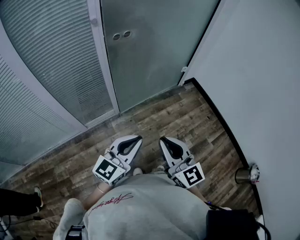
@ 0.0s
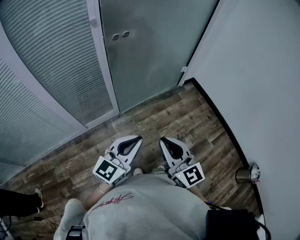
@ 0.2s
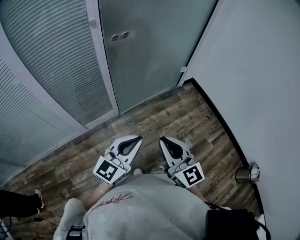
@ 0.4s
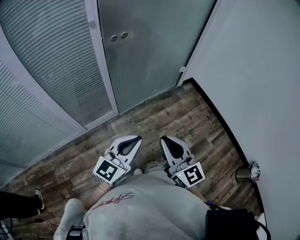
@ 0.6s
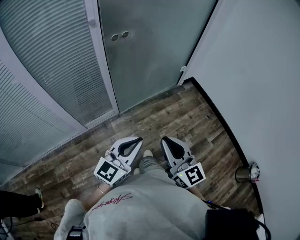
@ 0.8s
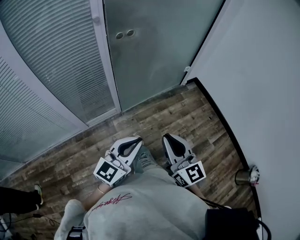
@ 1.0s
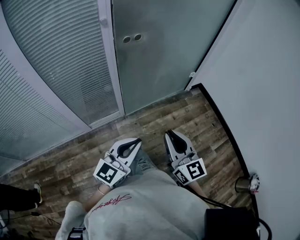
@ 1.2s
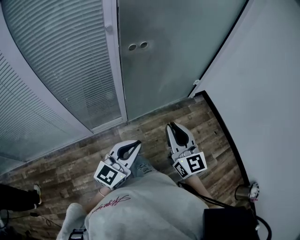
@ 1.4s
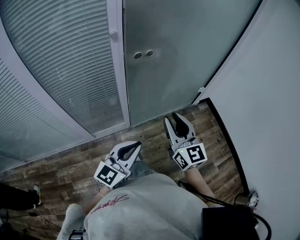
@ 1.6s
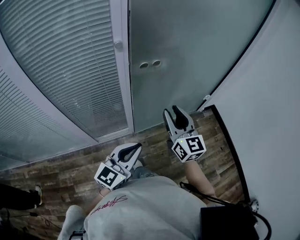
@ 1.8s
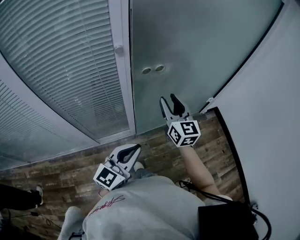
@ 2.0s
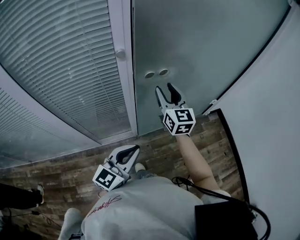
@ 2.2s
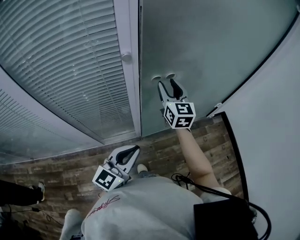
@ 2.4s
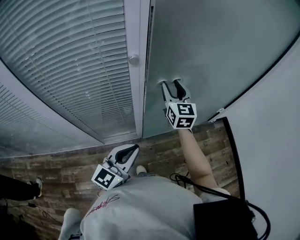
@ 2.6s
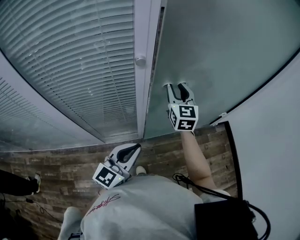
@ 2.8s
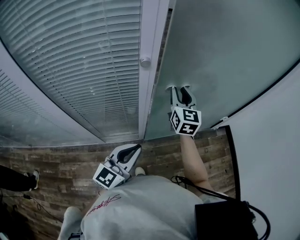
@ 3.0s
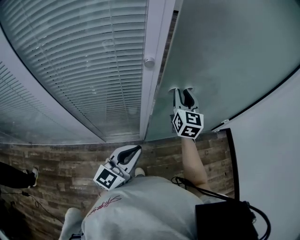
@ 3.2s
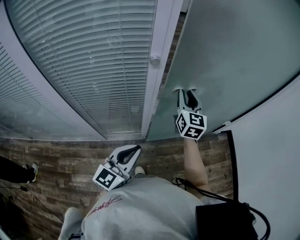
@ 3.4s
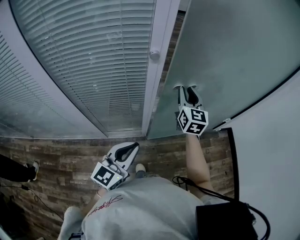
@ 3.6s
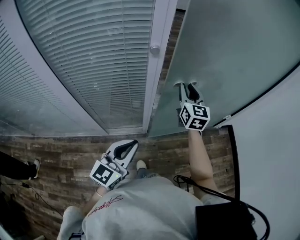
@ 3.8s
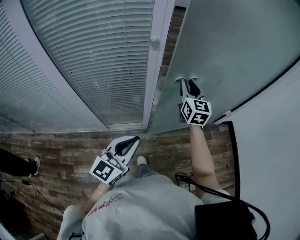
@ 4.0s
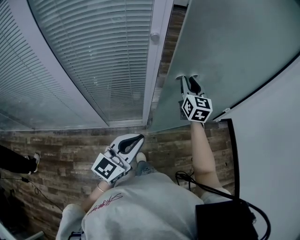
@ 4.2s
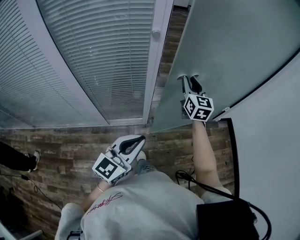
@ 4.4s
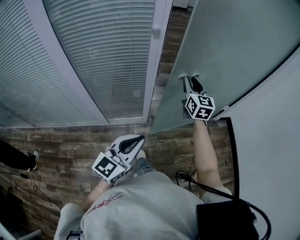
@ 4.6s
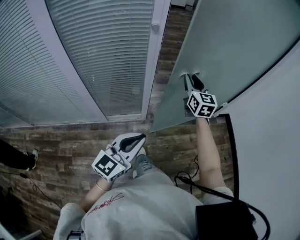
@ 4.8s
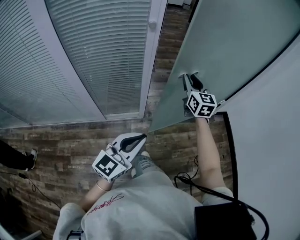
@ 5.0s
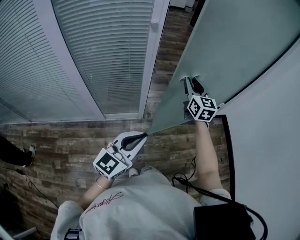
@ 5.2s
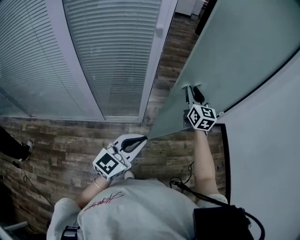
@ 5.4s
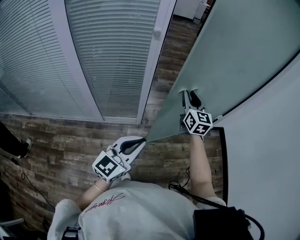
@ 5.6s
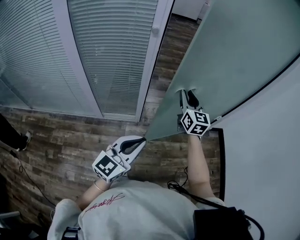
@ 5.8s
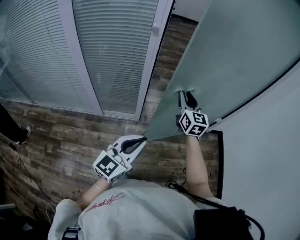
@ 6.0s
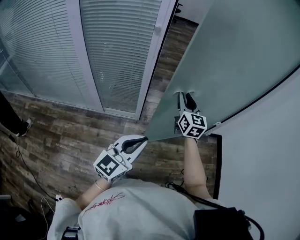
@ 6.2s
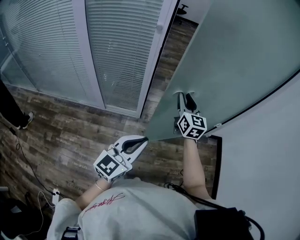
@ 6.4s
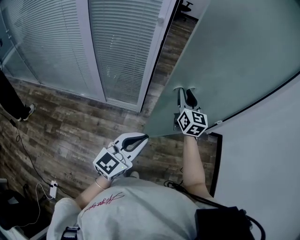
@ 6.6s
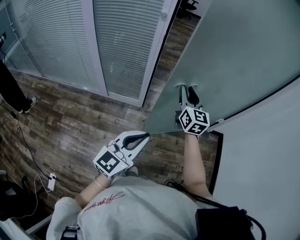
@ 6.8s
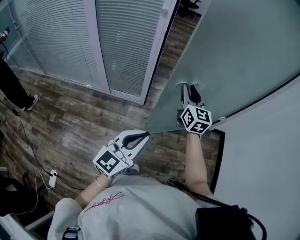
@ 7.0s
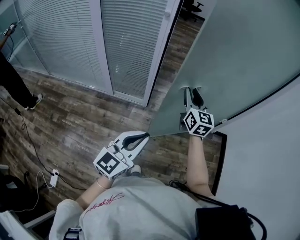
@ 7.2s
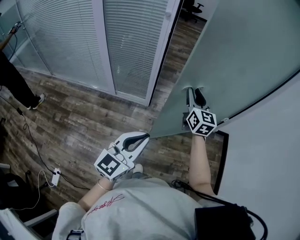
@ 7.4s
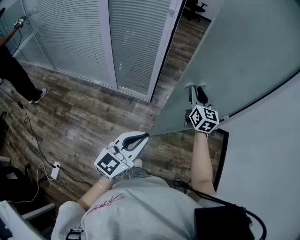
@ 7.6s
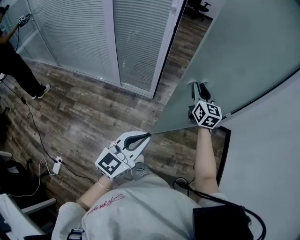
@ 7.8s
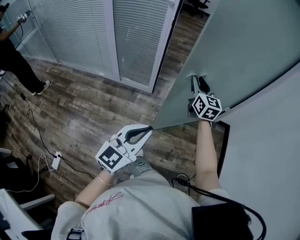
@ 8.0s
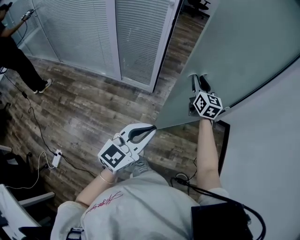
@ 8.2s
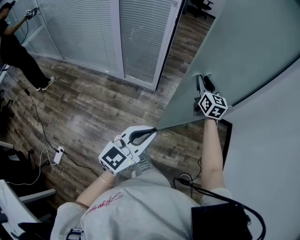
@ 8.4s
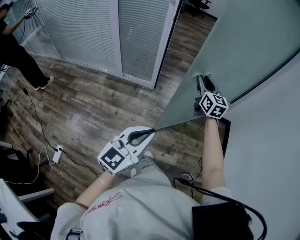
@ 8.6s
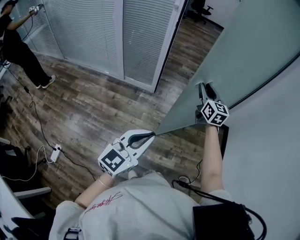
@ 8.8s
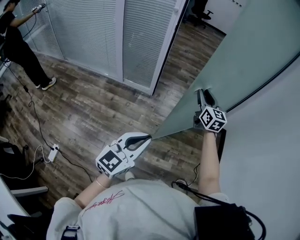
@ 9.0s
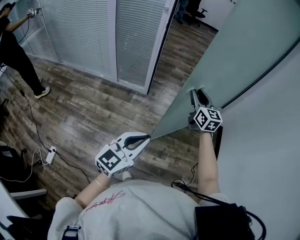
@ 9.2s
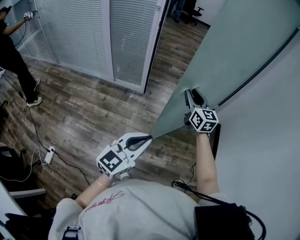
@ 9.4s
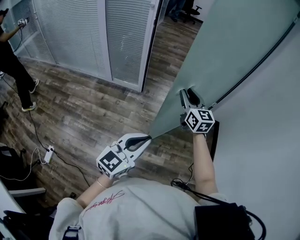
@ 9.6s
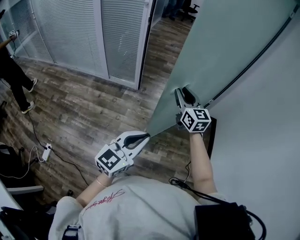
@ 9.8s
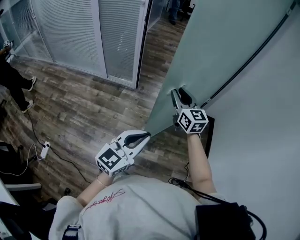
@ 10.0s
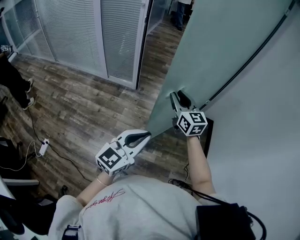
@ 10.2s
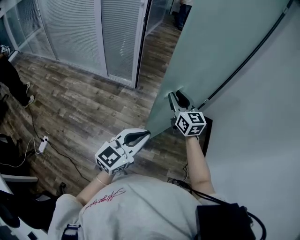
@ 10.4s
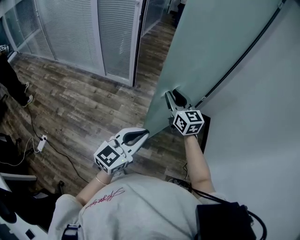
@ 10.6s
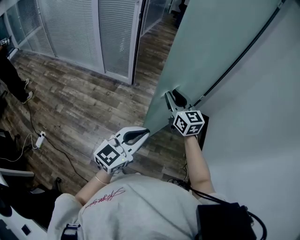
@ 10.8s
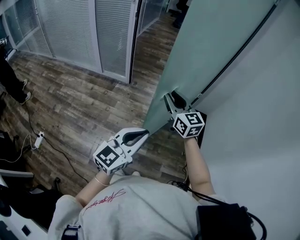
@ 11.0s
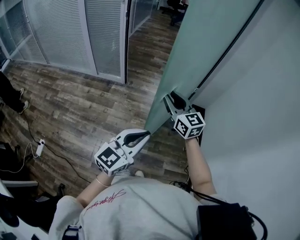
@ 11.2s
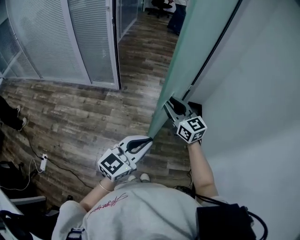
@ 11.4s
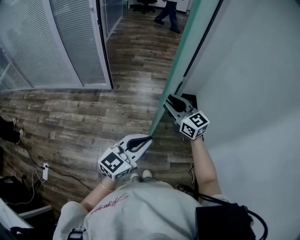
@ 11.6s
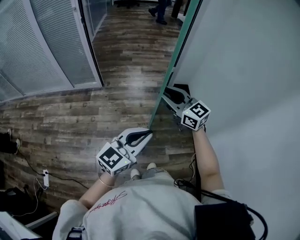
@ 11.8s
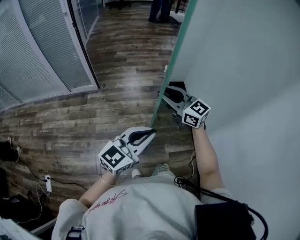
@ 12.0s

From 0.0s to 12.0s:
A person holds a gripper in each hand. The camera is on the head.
From 0.0s to 1.6s: The left gripper is displaced forward and to the left by some 15 cm. The right gripper is displaced forward by roughly 20 cm.
From 1.6s to 3.0s: The right gripper goes about 30 cm forward, while the left gripper travels forward and to the left by about 15 cm.
From 3.0s to 4.4s: The left gripper is displaced backward by approximately 10 cm, while the right gripper travels backward by roughly 5 cm.
From 4.4s to 6.0s: The right gripper is displaced backward and to the right by approximately 15 cm; the left gripper travels to the right and backward by approximately 15 cm.
From 6.0s to 7.6s: Both grippers move backward and to the right, some 15 cm.
From 7.6s to 9.0s: Both grippers travel together backward and to the right, roughly 15 cm.
From 9.0s to 10.4s: The left gripper travels to the right by approximately 20 cm. Meanwhile the right gripper moves backward and to the right, some 15 cm.
From 10.4s to 12.0s: The right gripper heads to the right and backward, covering some 20 cm. Meanwhile the left gripper shifts about 15 cm to the right, and rotates about 30 degrees.

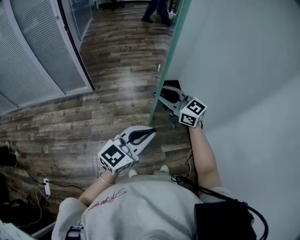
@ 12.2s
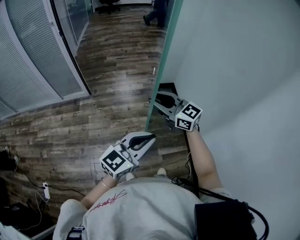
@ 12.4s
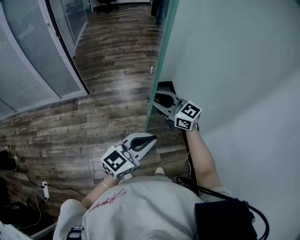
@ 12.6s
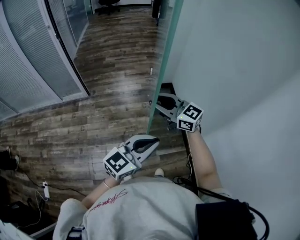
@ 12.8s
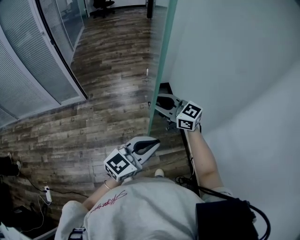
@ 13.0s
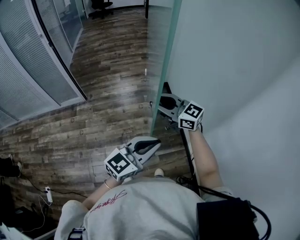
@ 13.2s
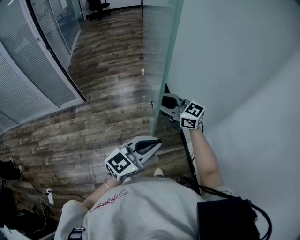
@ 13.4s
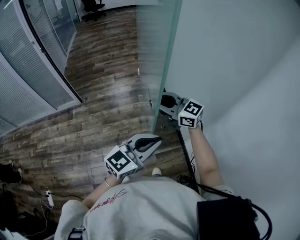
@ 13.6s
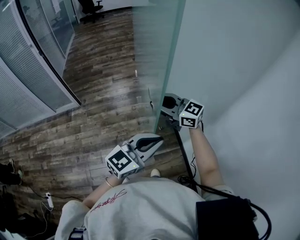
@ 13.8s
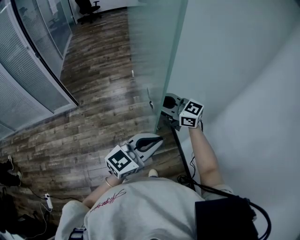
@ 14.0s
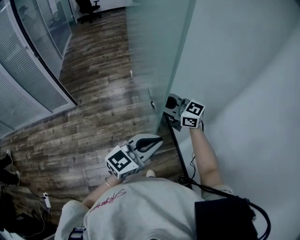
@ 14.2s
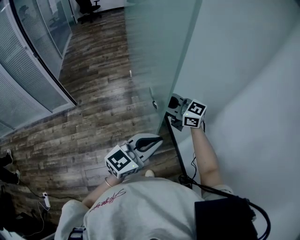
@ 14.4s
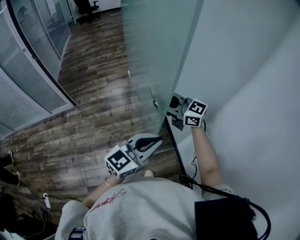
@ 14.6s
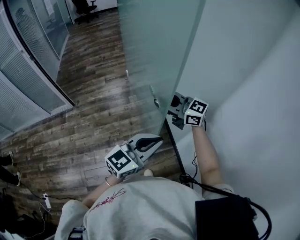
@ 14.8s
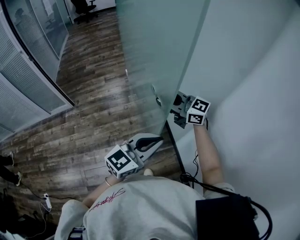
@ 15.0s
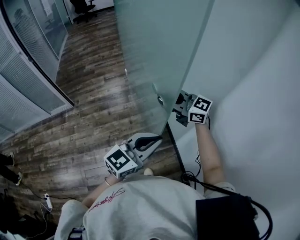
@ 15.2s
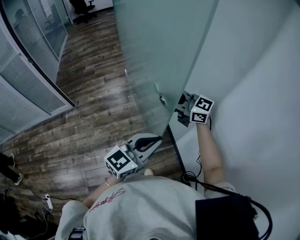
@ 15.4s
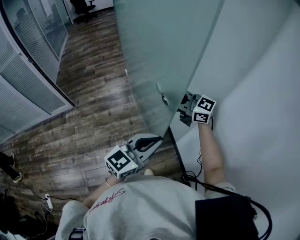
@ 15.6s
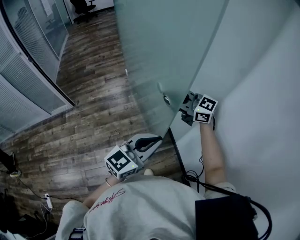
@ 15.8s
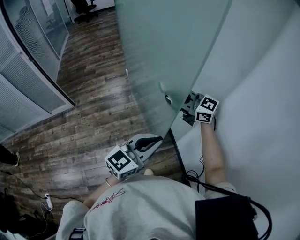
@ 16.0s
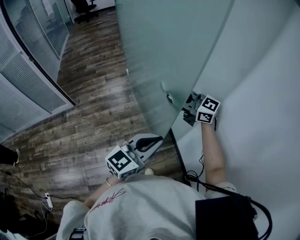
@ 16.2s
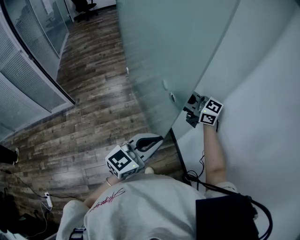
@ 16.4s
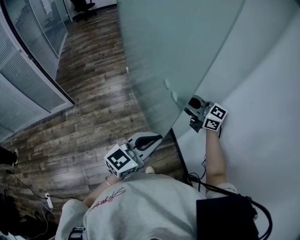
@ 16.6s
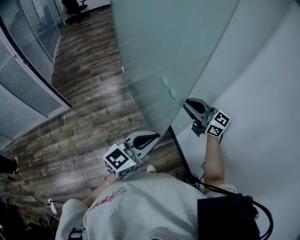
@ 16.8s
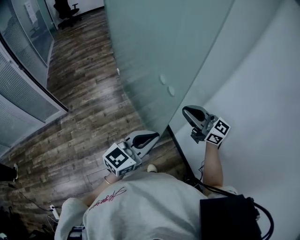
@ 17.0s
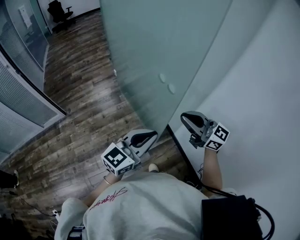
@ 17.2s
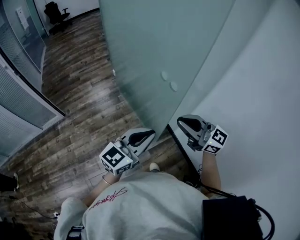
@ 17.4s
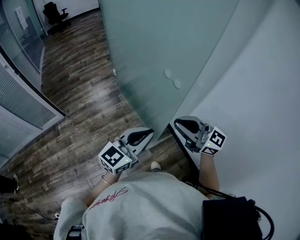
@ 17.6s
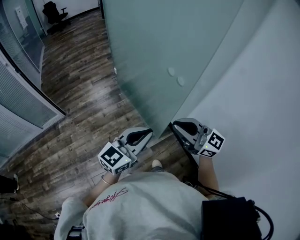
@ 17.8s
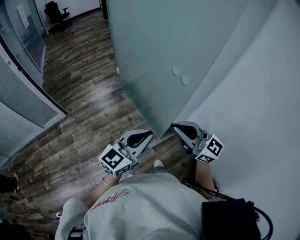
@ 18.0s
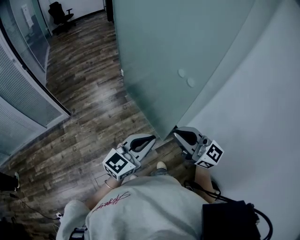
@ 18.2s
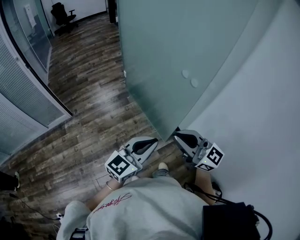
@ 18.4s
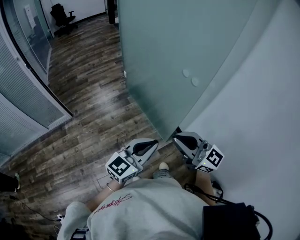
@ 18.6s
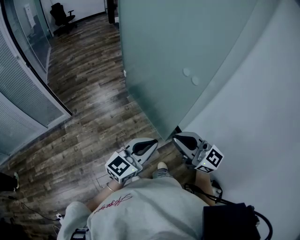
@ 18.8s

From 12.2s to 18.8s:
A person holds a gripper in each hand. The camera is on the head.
From 12.2s to 13.8s: The two grippers go some 20 cm to the right.
From 13.8s to 15.4s: The right gripper changes place by about 15 cm. The left gripper ends up roughly 10 cm from where it was.
From 15.4s to 17.2s: The right gripper goes about 15 cm backward. The left gripper shifts approximately 5 cm to the left.
From 17.2s to 18.8s: Both grippers travel together to the left and backward, some 20 cm.

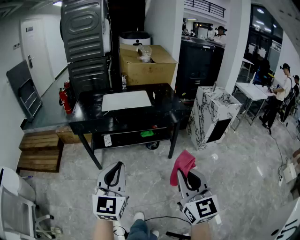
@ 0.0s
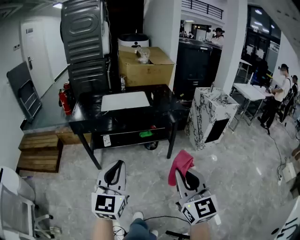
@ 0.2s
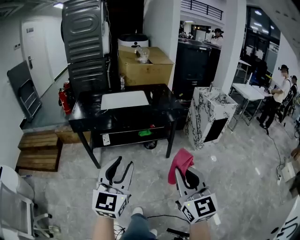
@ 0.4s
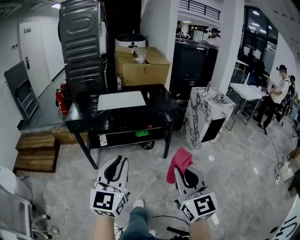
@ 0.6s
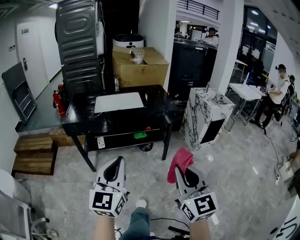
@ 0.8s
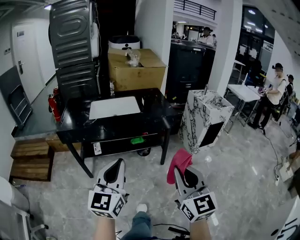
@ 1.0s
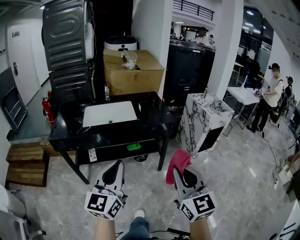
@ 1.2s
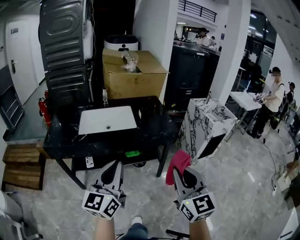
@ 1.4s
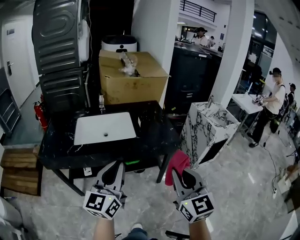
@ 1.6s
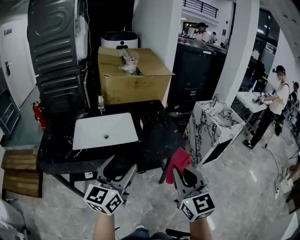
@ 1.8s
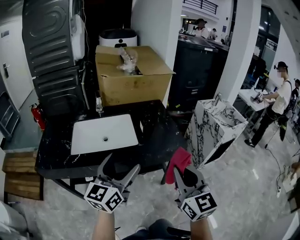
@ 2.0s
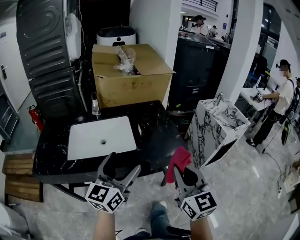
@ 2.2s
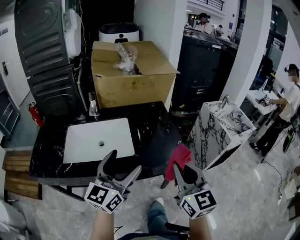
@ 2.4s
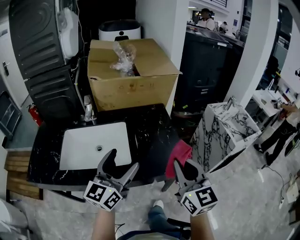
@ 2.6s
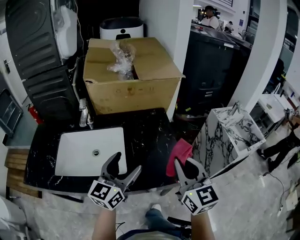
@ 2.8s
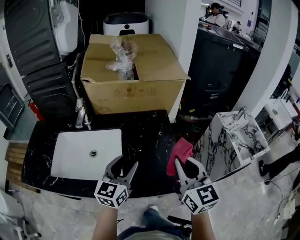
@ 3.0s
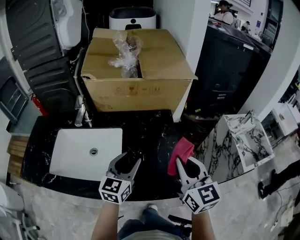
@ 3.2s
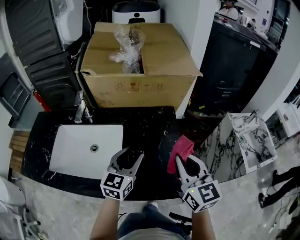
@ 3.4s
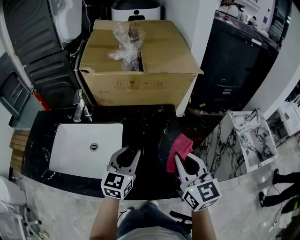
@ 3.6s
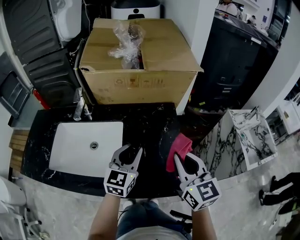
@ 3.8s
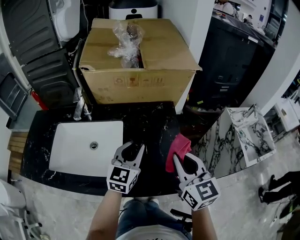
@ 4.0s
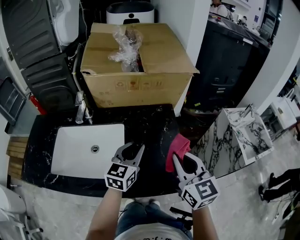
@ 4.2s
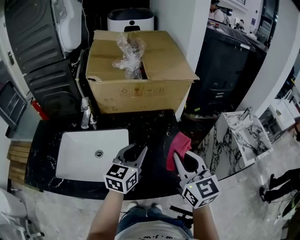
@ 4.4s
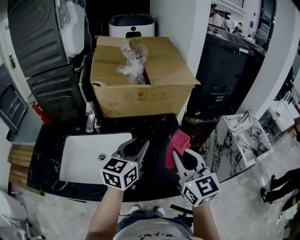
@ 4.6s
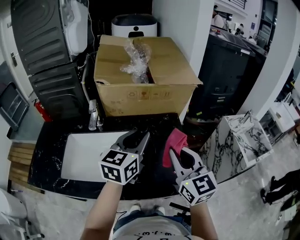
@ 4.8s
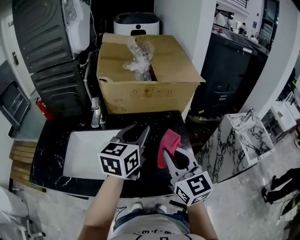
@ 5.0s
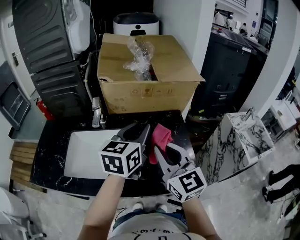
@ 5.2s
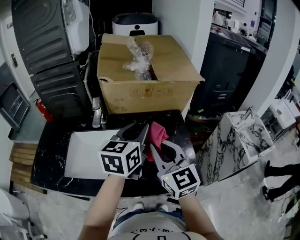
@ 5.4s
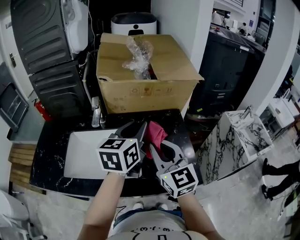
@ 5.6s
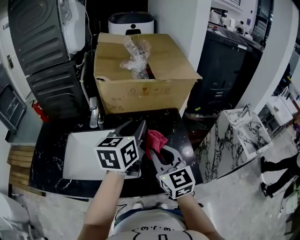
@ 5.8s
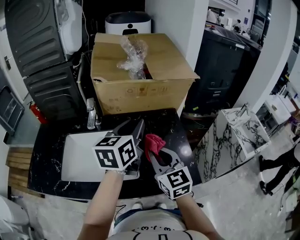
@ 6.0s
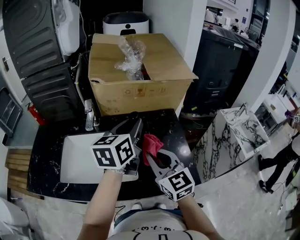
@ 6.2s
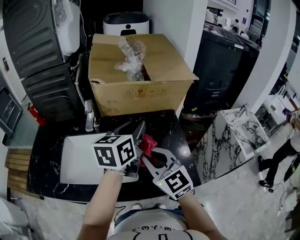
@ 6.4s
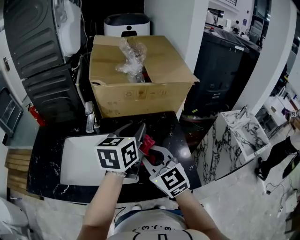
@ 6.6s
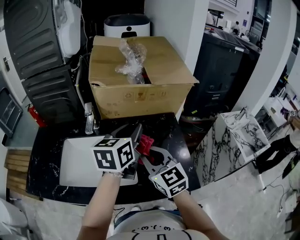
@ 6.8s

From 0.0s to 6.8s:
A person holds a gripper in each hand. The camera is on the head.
From 0.0s to 1.4s: Both grippers travel together forward, some 25 cm. The left gripper swivels some 30 degrees.
From 1.4s to 2.8s: The pair of grippers is taken forward, approximately 50 cm. The left gripper opens its fingers.
From 2.8s to 4.0s: Both grippers move forward and downward, some 15 cm. The left gripper closes its fingers.
From 4.0s to 5.4s: The right gripper travels to the left and upward by roughly 15 cm, while the left gripper heads upward and to the left, covering approximately 15 cm.
From 5.4s to 6.8s: The right gripper ends up about 5 cm from where it was.
